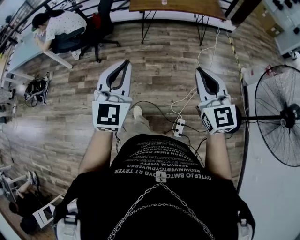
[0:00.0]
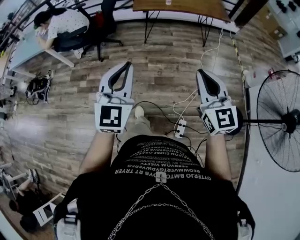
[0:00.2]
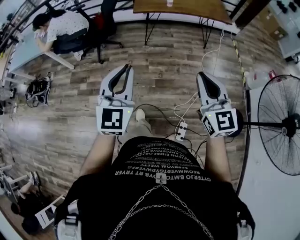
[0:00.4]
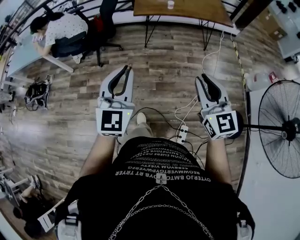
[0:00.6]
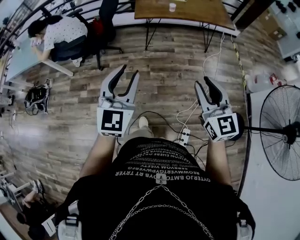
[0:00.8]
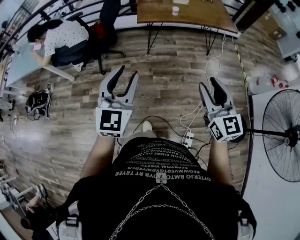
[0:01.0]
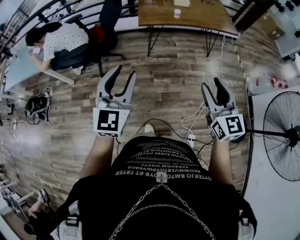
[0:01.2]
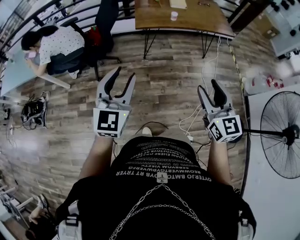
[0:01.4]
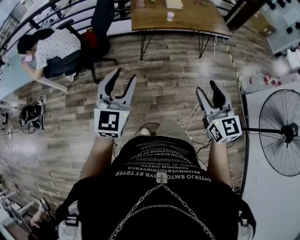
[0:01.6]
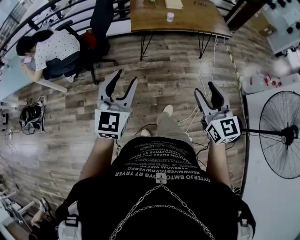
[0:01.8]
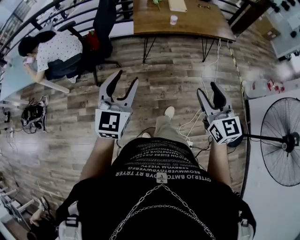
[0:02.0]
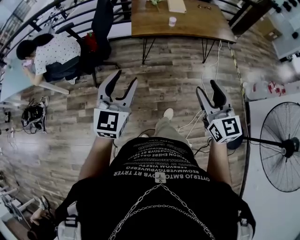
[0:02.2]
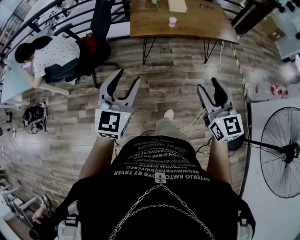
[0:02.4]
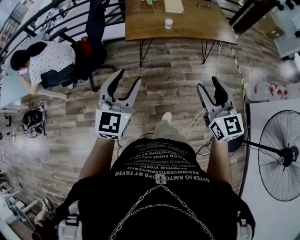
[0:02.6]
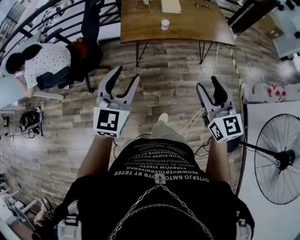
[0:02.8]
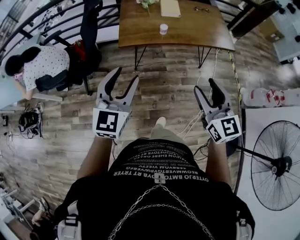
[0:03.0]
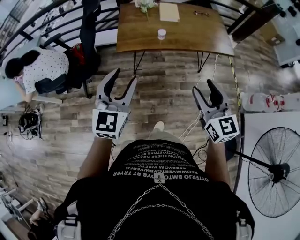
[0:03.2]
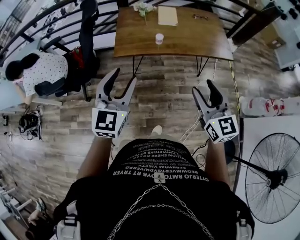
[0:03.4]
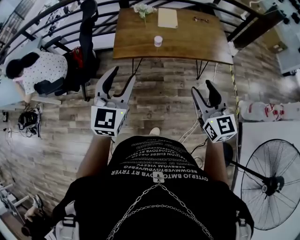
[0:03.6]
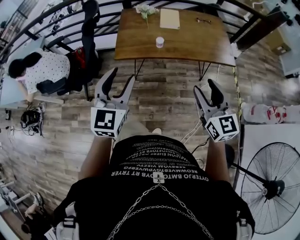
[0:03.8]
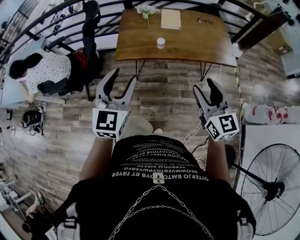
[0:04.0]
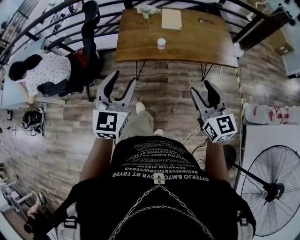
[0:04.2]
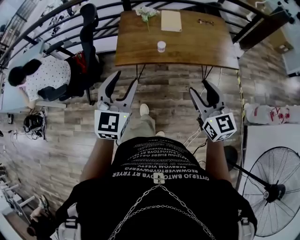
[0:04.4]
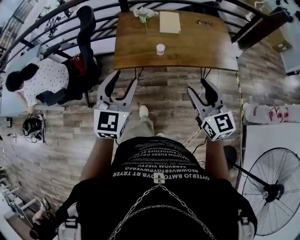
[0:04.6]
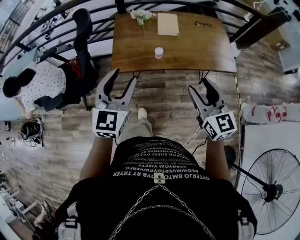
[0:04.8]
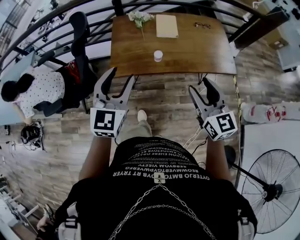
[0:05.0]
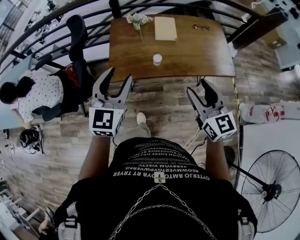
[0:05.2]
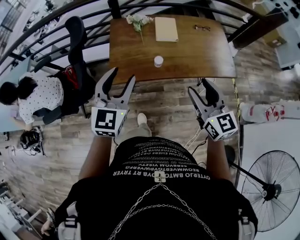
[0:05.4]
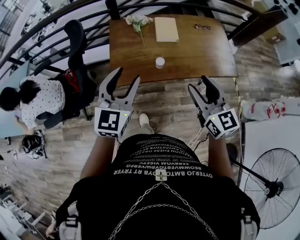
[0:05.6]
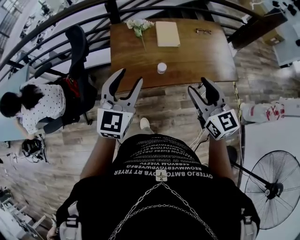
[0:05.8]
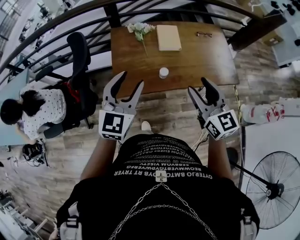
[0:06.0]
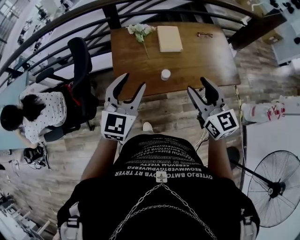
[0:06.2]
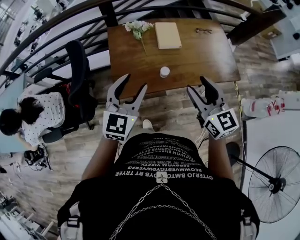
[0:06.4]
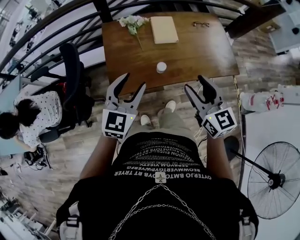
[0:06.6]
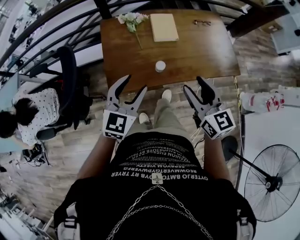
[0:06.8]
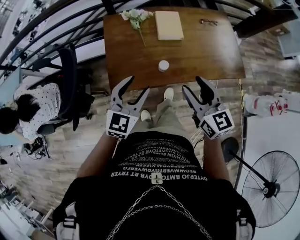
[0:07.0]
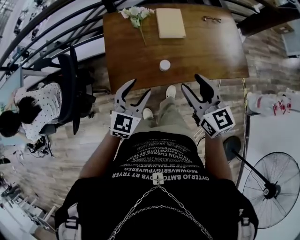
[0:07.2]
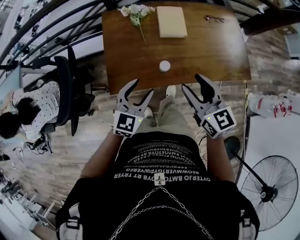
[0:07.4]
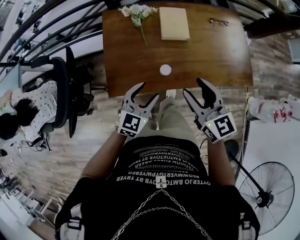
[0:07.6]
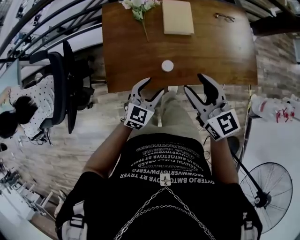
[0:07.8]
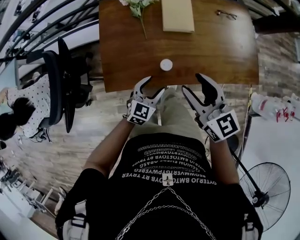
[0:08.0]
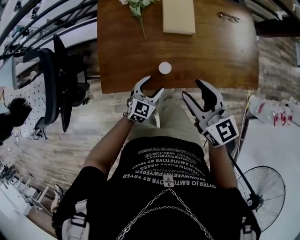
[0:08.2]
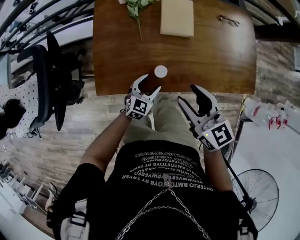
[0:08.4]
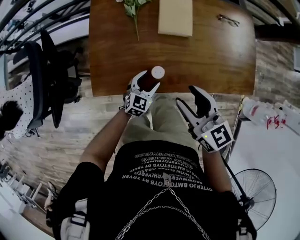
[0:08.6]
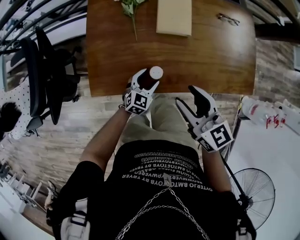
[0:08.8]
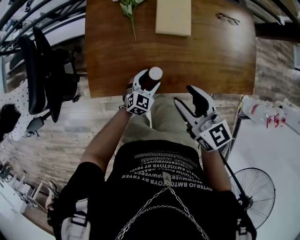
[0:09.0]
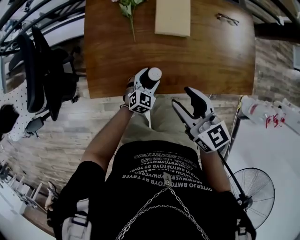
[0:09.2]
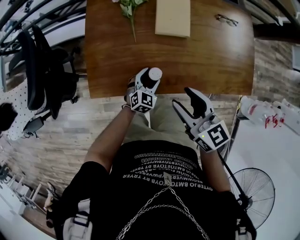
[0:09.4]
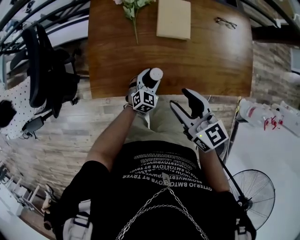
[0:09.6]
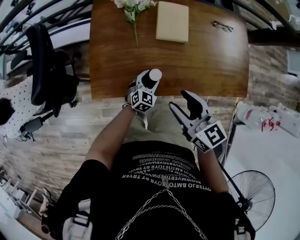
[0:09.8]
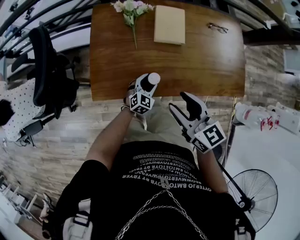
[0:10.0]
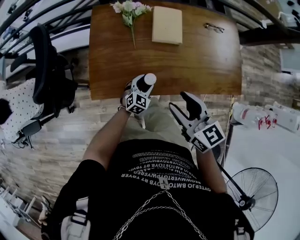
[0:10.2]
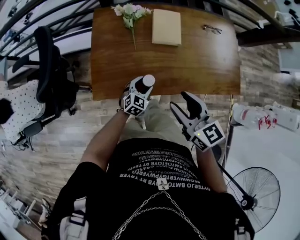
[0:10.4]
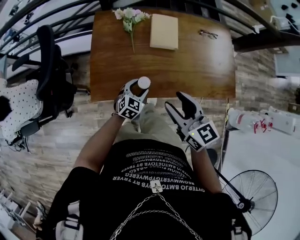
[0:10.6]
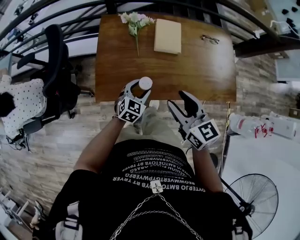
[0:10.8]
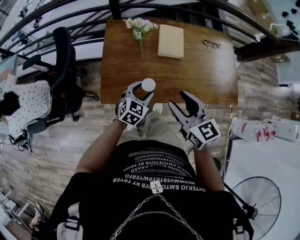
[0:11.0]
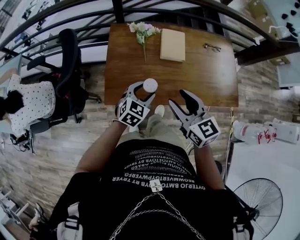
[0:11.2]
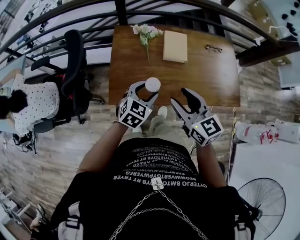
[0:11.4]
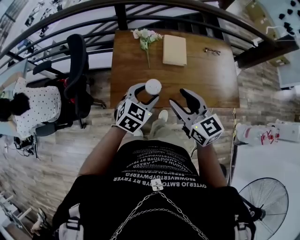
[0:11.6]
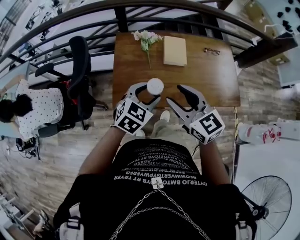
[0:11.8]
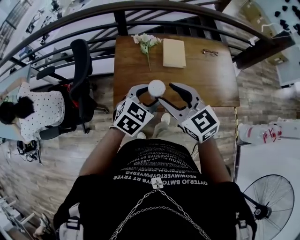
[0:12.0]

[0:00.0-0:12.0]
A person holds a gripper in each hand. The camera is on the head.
0:00.0 to 0:01.6: Both grippers travel together forward and to the left, roughly 25 cm. The right gripper opens. The left gripper opens up.
0:01.6 to 0:03.0: The two grippers go some 25 cm forward and to the right.
0:03.0 to 0:04.4: Both grippers travel together forward and to the right, some 15 cm.
0:04.4 to 0:06.0: Both grippers move forward, approximately 20 cm.
0:06.0 to 0:07.6: The left gripper goes some 20 cm downward. Meanwhile the right gripper moves downward and forward, about 15 cm.
0:07.6 to 0:09.0: The right gripper moves downward, approximately 5 cm, while the left gripper is displaced downward by approximately 20 cm.
0:09.0 to 0:10.4: The right gripper changes place by some 5 cm.
0:10.4 to 0:12.0: The right gripper moves upward and to the left, about 15 cm, and turns by approximately 20 degrees; the left gripper is displaced upward by some 30 cm.

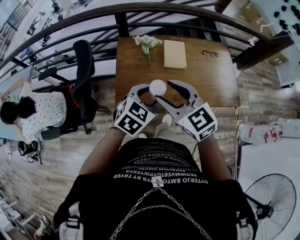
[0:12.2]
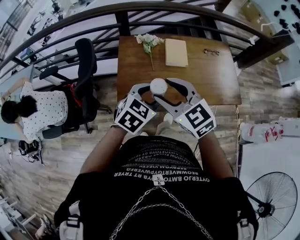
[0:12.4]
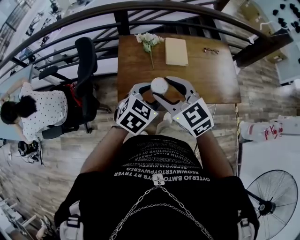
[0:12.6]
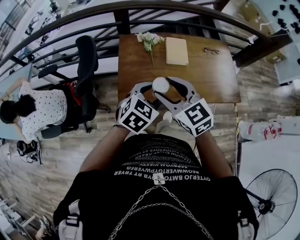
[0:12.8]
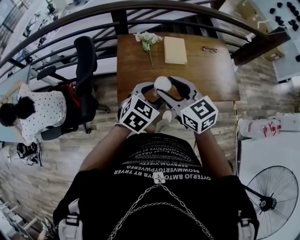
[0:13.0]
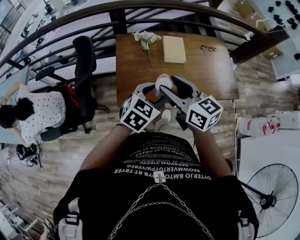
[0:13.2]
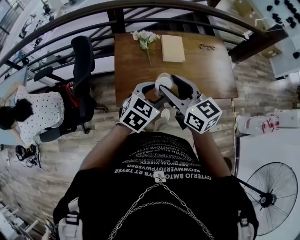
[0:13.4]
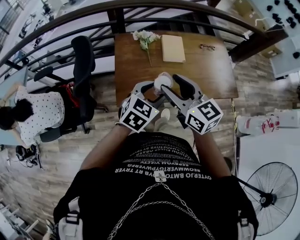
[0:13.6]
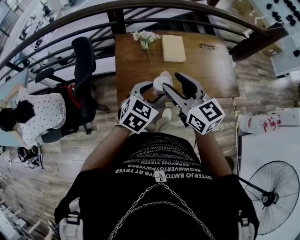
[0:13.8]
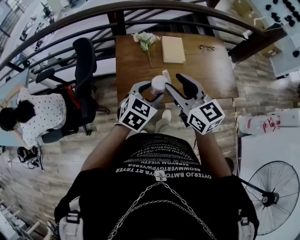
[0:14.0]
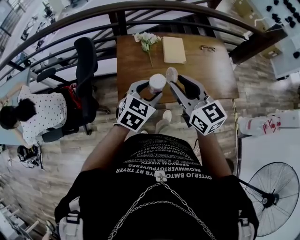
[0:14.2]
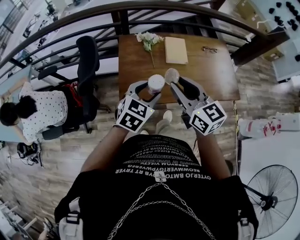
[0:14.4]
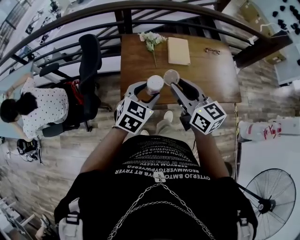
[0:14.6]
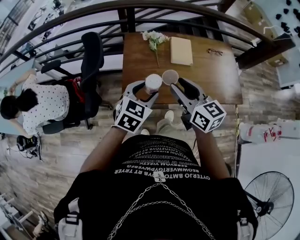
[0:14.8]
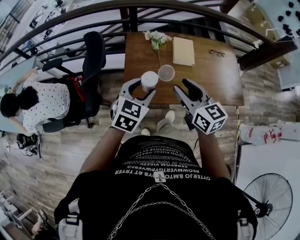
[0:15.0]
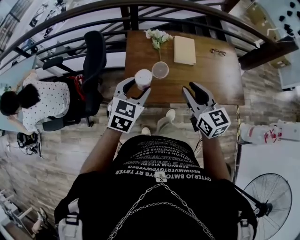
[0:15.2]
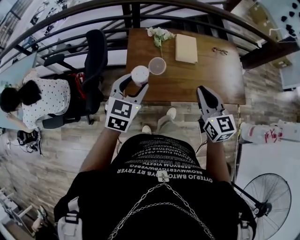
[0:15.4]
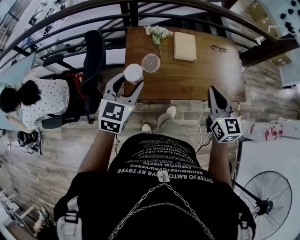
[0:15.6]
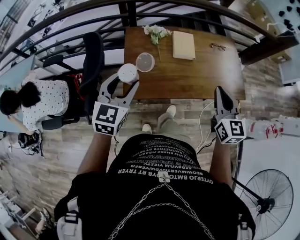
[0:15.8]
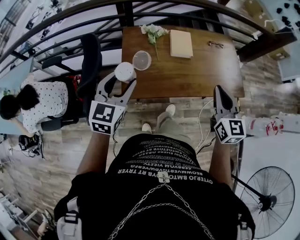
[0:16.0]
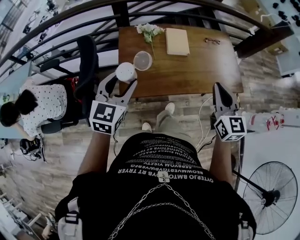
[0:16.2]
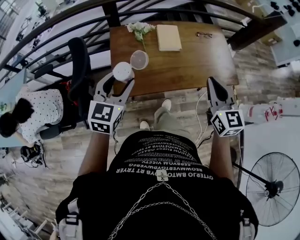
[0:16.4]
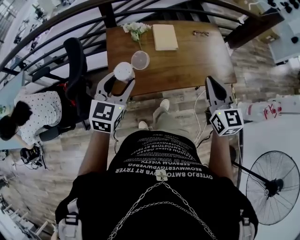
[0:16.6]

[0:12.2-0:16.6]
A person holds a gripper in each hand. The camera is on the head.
0:12.2 to 0:13.6: The right gripper swivels roughly 20 degrees.
0:13.6 to 0:15.2: The right gripper closes its fingers; the left gripper heads to the left, covering about 10 cm.
0:15.2 to 0:16.6: The right gripper moves to the right, approximately 15 cm, rotates about 20 degrees, and closes.

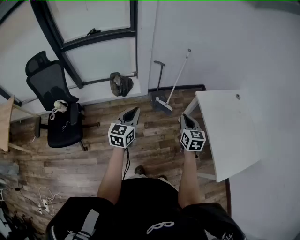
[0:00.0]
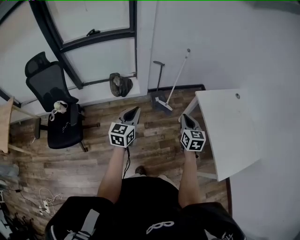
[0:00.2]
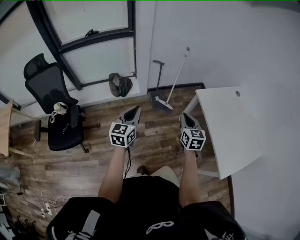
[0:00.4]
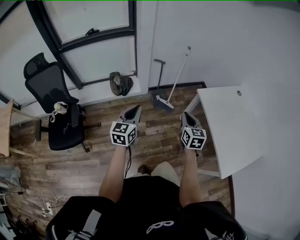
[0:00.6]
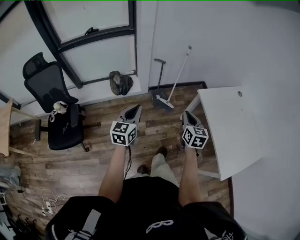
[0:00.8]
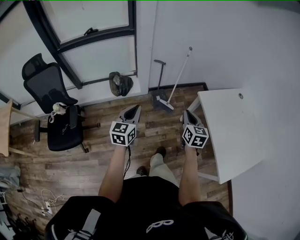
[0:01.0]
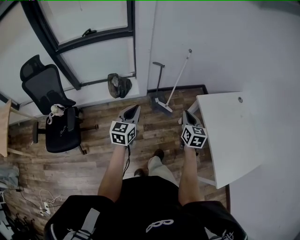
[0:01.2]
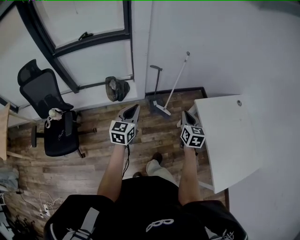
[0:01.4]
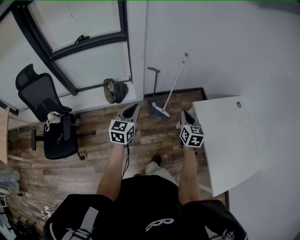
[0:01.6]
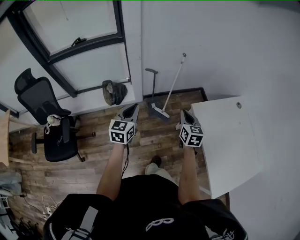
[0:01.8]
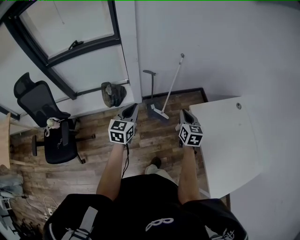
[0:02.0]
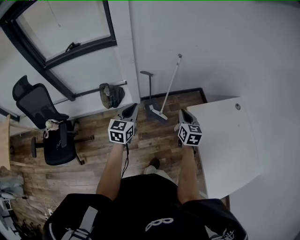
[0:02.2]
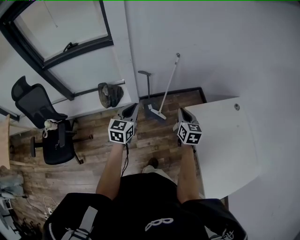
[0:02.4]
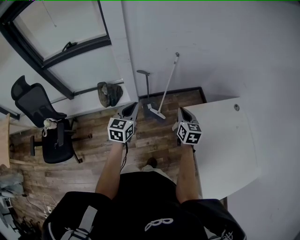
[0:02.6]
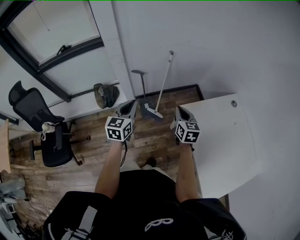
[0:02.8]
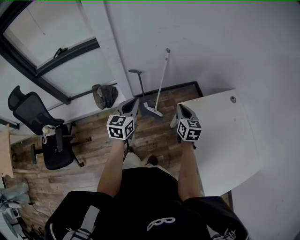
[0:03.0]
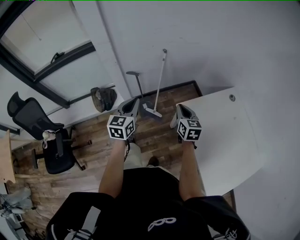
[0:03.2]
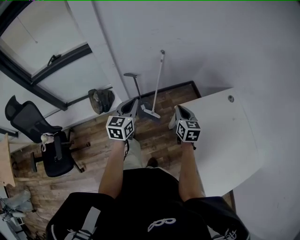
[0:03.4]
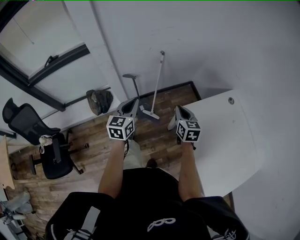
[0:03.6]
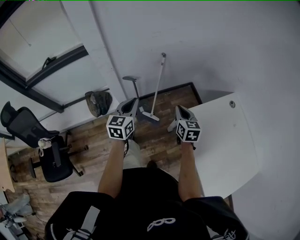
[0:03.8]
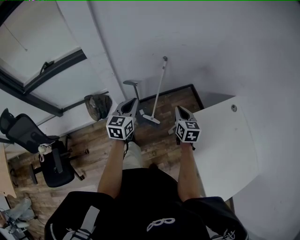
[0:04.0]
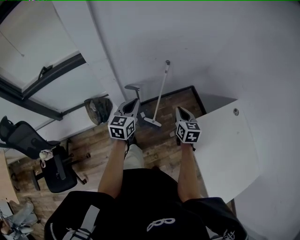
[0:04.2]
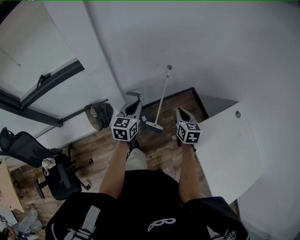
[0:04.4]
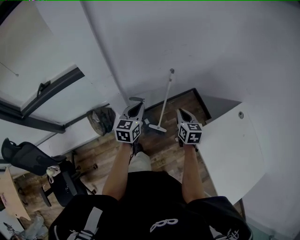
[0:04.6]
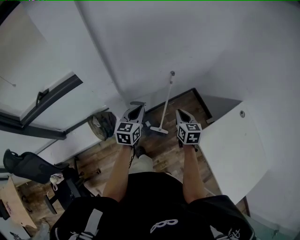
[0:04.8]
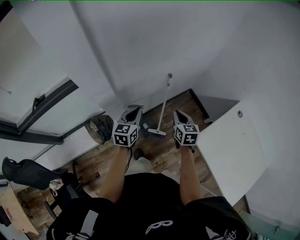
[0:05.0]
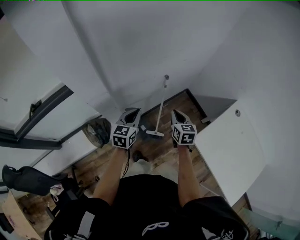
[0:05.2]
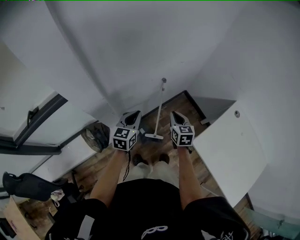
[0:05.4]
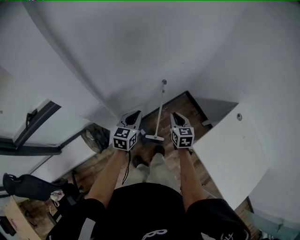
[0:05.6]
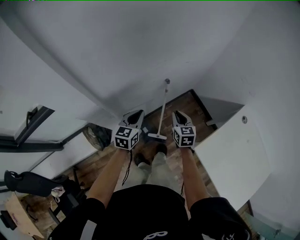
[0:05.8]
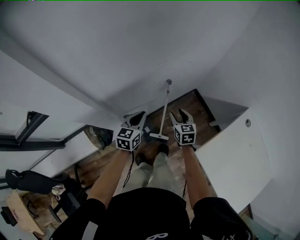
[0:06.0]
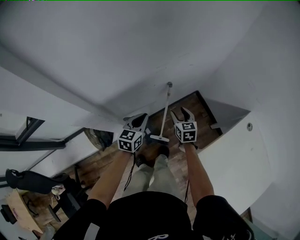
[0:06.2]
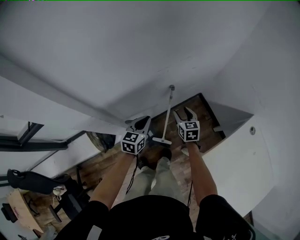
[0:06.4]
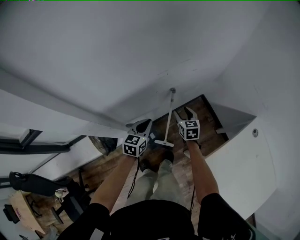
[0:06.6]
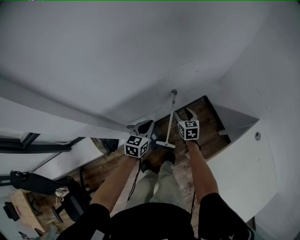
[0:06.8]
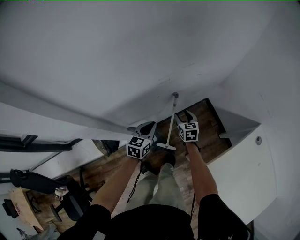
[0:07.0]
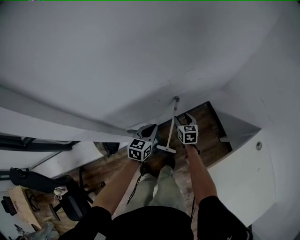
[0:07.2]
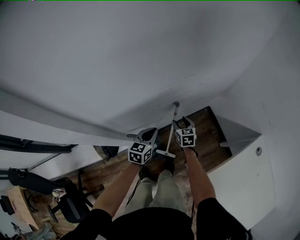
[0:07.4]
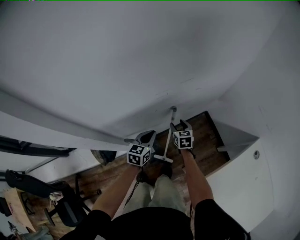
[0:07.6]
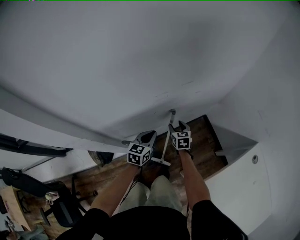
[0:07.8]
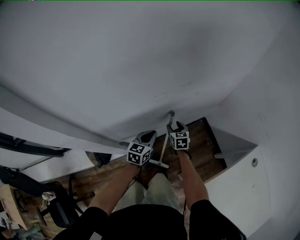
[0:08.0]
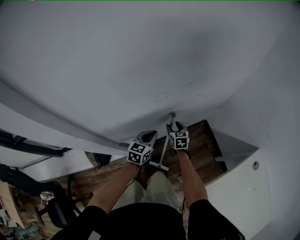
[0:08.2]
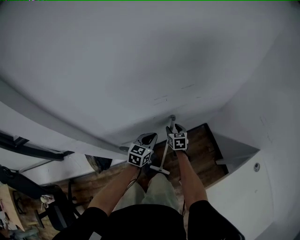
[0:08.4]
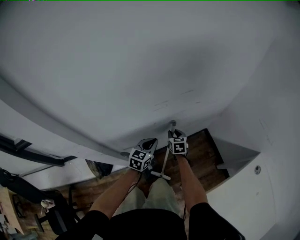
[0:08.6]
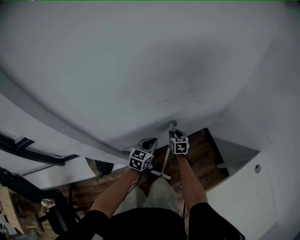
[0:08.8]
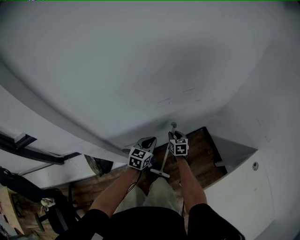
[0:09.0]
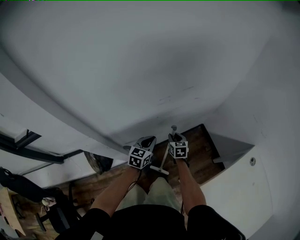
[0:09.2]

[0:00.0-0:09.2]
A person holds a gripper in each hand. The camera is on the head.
0:00.0 to 0:01.6: Both grippers travel together forward, roughly 15 cm.
0:01.6 to 0:03.0: Both grippers move to the right and forward, roughly 20 cm.
0:03.0 to 0:04.6: The left gripper shifts some 25 cm forward. The right gripper is displaced forward and to the left by about 25 cm.
0:04.6 to 0:06.2: The grippers both shift forward and downward by about 20 cm. The right gripper opens up.
0:06.2 to 0:07.6: The left gripper travels downward and forward by about 10 cm; the right gripper moves forward and downward, some 15 cm.
0:07.6 to 0:09.2: The right gripper closes.
